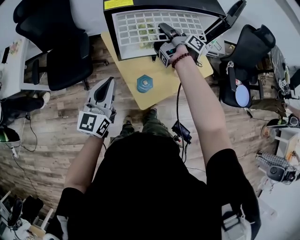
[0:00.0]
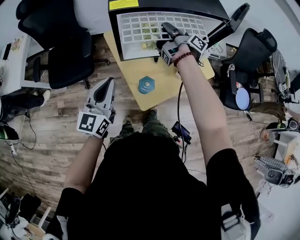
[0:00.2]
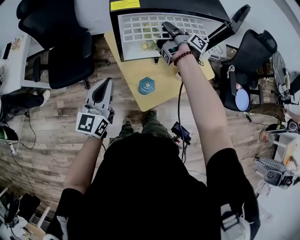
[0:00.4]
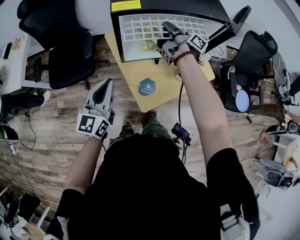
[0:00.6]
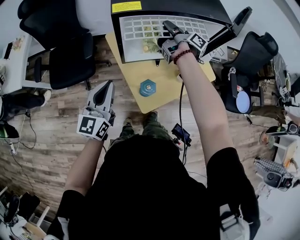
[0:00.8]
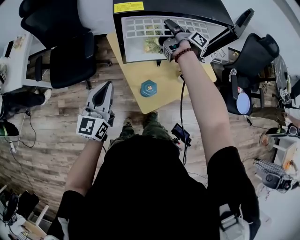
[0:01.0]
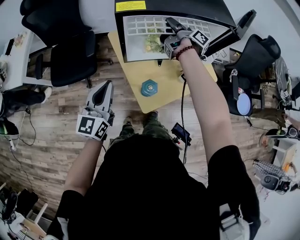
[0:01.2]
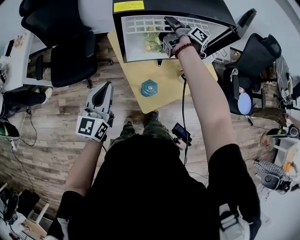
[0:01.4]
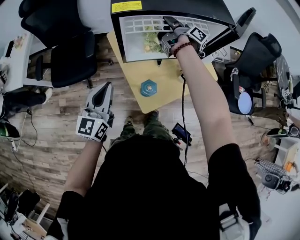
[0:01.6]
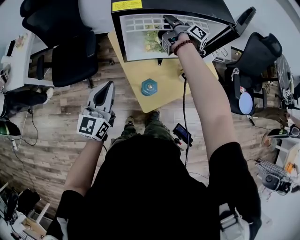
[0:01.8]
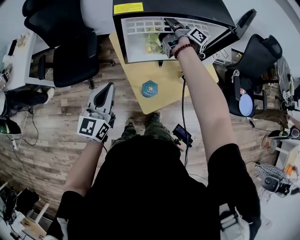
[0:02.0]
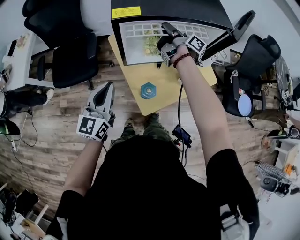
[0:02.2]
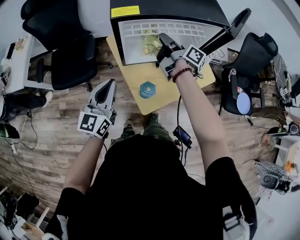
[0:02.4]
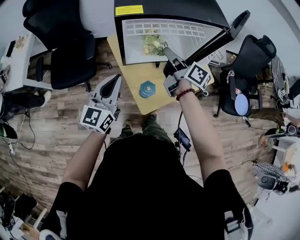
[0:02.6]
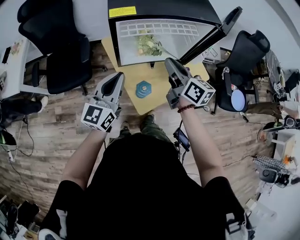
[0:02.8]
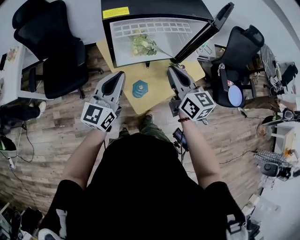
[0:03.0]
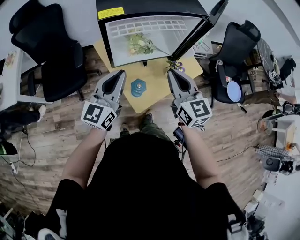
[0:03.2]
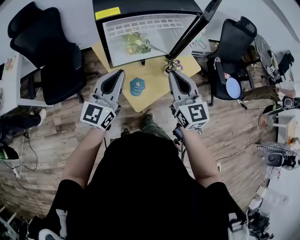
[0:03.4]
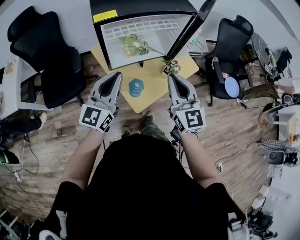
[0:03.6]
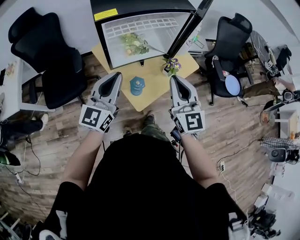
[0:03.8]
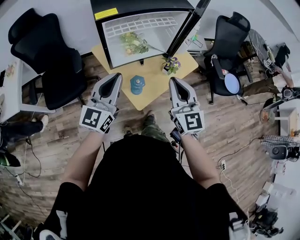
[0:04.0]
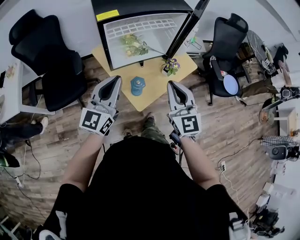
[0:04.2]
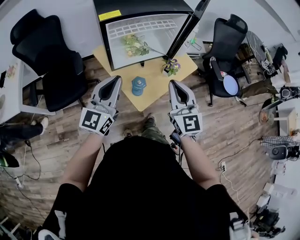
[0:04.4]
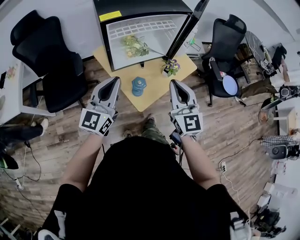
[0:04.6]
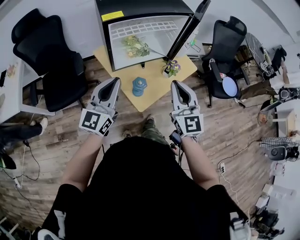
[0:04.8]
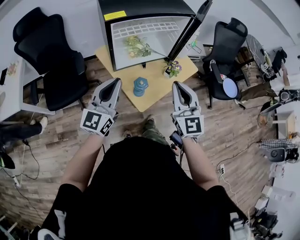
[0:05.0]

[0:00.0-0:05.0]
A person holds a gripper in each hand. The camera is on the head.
0:00.0 to 0:01.6: The right gripper shifts approximately 5 cm forward.
0:01.6 to 0:03.4: The left gripper heads to the right and upward, covering about 10 cm, and changes its angle by roughly 20 degrees; the right gripper is displaced backward by about 30 cm, and rolls counterclockwise, seen from behind, by roughly 90 degrees.
0:03.4 to 0:05.0: Both grippers move backward, approximately 5 cm.

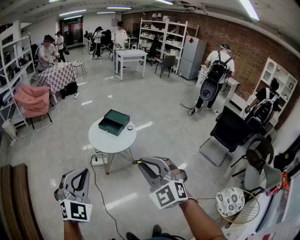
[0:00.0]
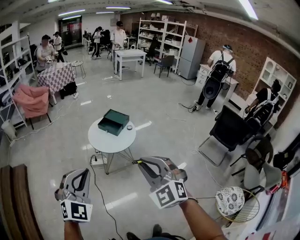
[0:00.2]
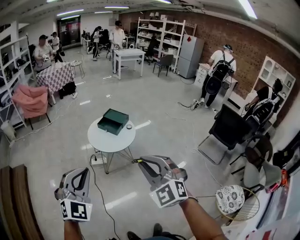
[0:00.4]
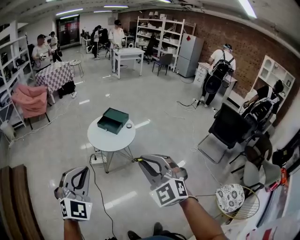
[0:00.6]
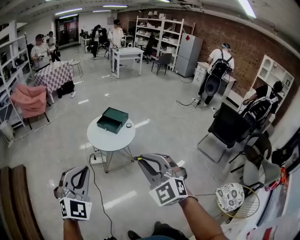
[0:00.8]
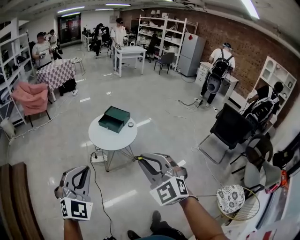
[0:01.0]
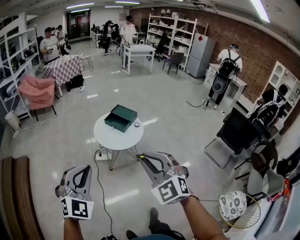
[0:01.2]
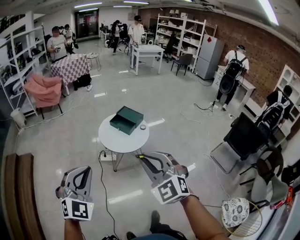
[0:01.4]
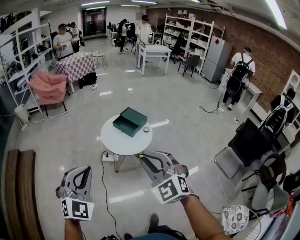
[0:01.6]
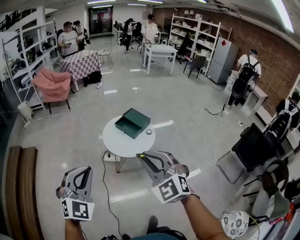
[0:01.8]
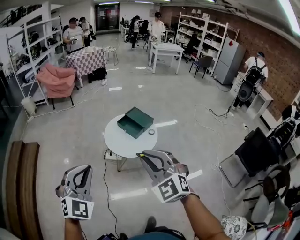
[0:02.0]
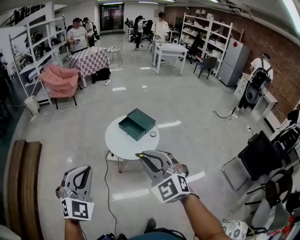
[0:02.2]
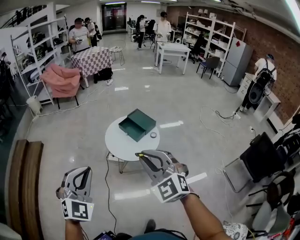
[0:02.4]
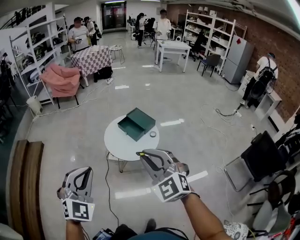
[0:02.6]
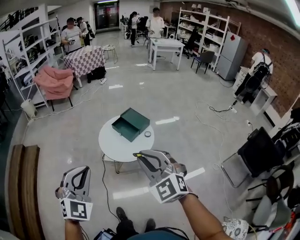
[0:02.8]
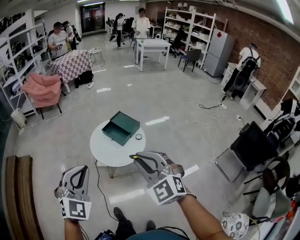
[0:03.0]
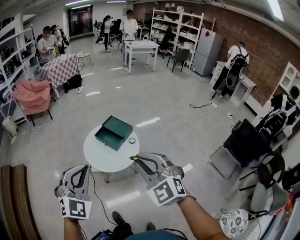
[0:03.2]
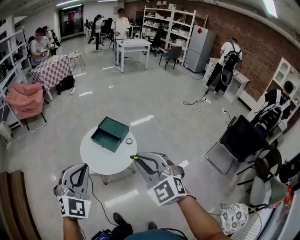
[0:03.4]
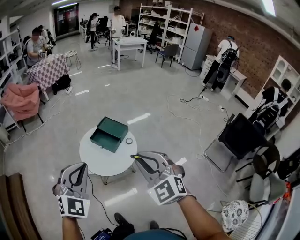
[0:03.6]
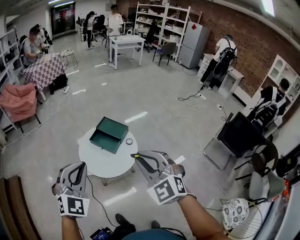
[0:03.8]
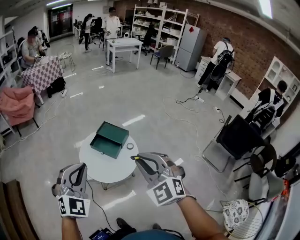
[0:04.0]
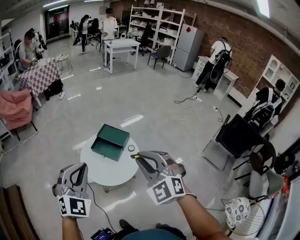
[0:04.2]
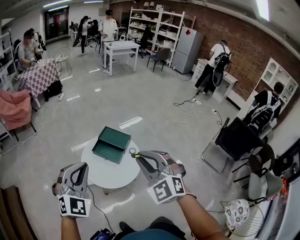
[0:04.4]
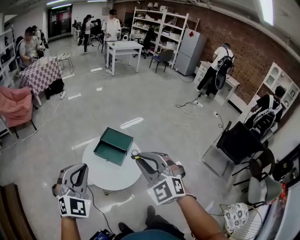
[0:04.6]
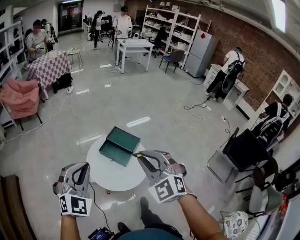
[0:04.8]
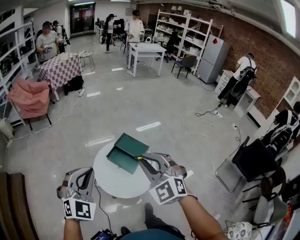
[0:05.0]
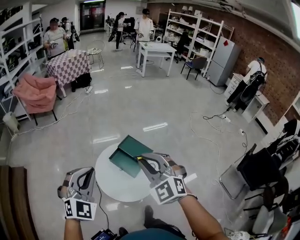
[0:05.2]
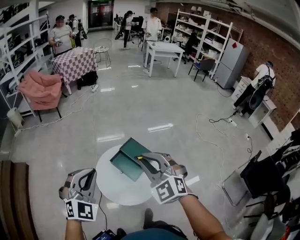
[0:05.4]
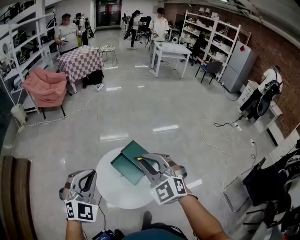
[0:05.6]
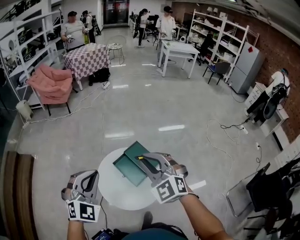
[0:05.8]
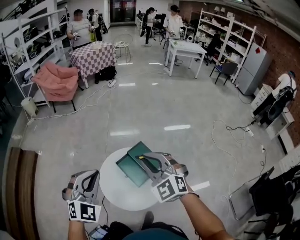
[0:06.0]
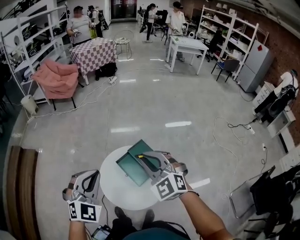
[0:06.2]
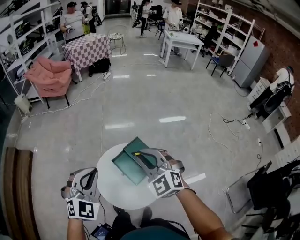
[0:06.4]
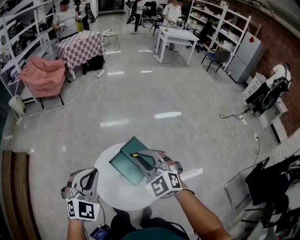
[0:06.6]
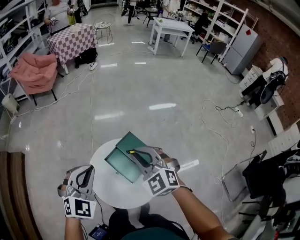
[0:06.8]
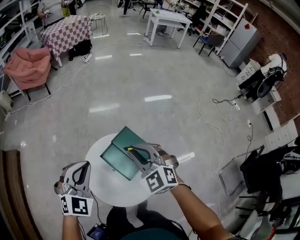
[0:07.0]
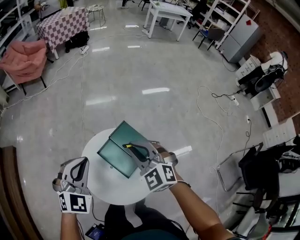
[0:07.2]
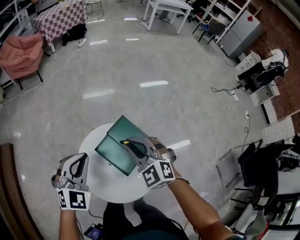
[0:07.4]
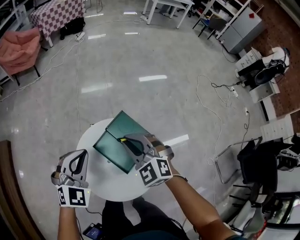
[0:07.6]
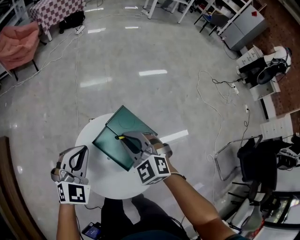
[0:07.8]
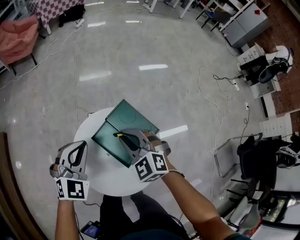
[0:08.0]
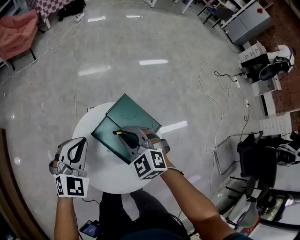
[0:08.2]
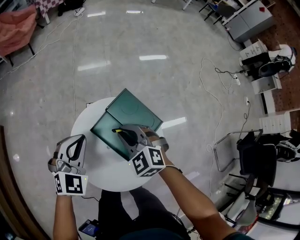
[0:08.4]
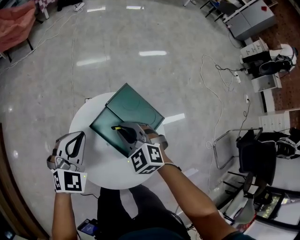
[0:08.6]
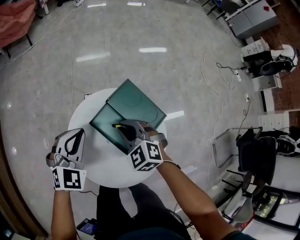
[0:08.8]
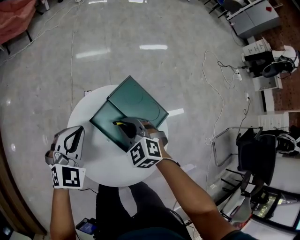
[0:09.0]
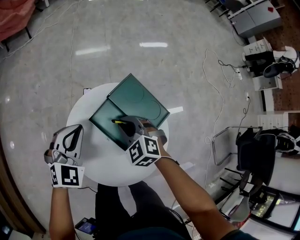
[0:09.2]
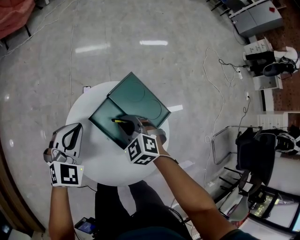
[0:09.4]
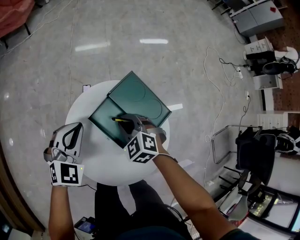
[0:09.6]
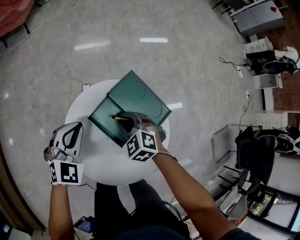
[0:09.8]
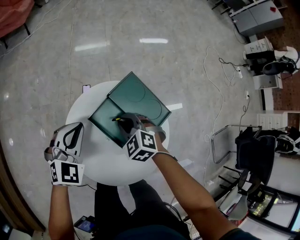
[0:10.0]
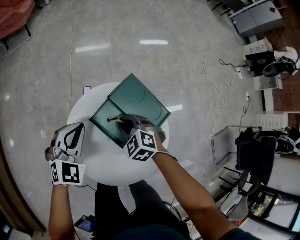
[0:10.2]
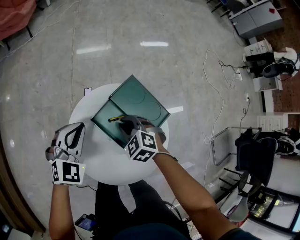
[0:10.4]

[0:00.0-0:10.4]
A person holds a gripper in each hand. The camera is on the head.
0:00.0 to 0:01.4: Both grippers travel together forward, some 10 cm.
0:01.4 to 0:03.0: The grippers both shift forward and to the right by about 30 cm.
0:03.0 to 0:04.4: Both grippers travel together forward and to the left, approximately 25 cm.
0:04.4 to 0:06.0: The right gripper moves approximately 35 cm, and turns by approximately 30 degrees, while the left gripper shifts by approximately 30 cm, and turns by roughly 20 degrees.
0:06.0 to 0:07.4: The right gripper goes some 30 cm downward and forward; the left gripper travels forward and downward by roughly 30 cm.
0:07.4 to 0:09.0: The grippers both shift downward by roughly 25 cm.
0:09.0 to 0:10.4: The grippers make only small movements.

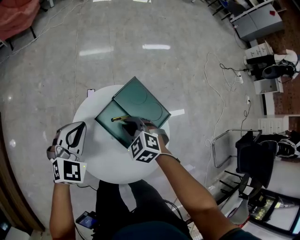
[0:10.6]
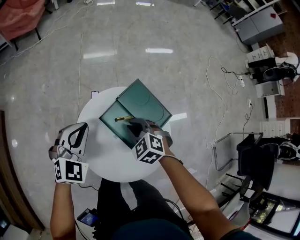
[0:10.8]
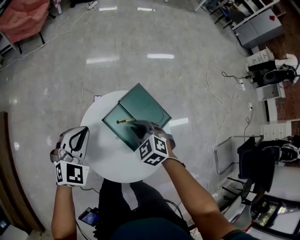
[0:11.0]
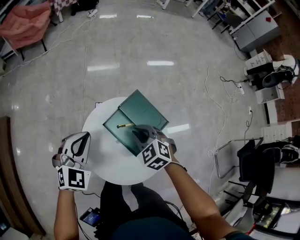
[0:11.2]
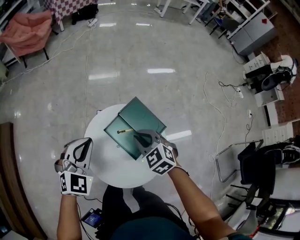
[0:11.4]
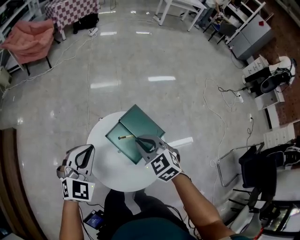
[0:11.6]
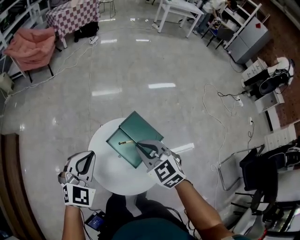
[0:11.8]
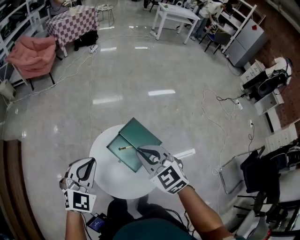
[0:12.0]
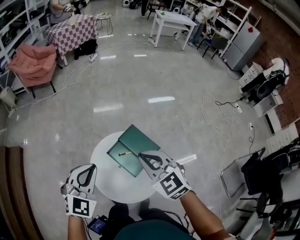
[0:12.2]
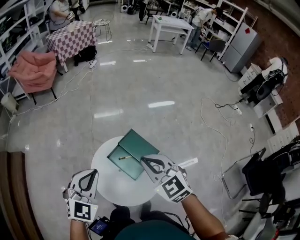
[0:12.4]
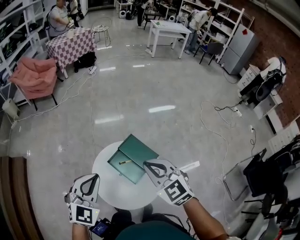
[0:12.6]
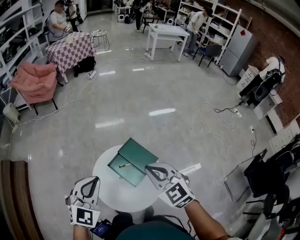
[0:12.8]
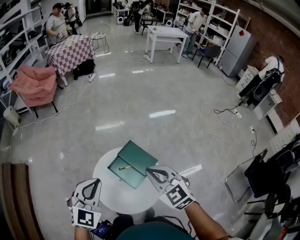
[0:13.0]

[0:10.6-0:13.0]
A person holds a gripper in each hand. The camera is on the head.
0:10.6 to 0:11.8: The right gripper heads upward, covering about 30 cm, and turns by about 30 degrees. The left gripper is displaced upward and backward by approximately 25 cm.
0:11.8 to 0:13.0: The right gripper heads upward, to the right and backward, covering approximately 20 cm. The left gripper shifts about 15 cm upward, backward and to the right.

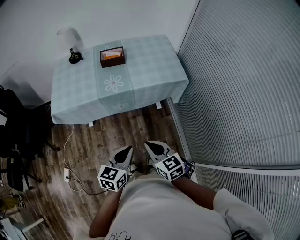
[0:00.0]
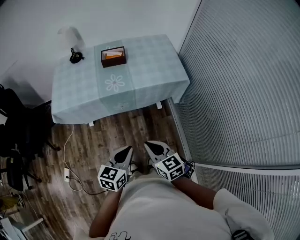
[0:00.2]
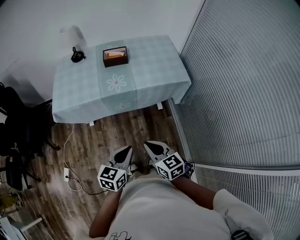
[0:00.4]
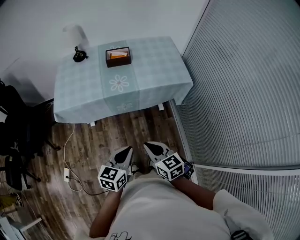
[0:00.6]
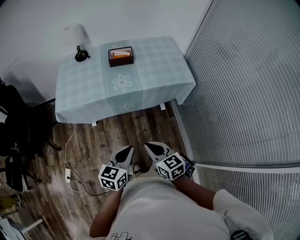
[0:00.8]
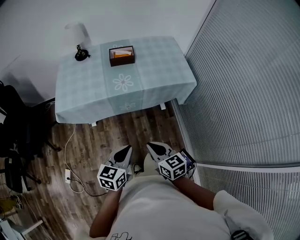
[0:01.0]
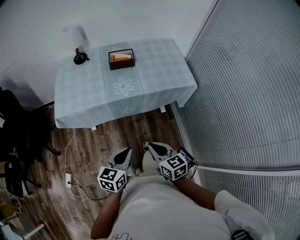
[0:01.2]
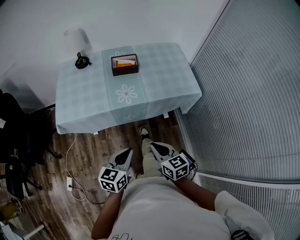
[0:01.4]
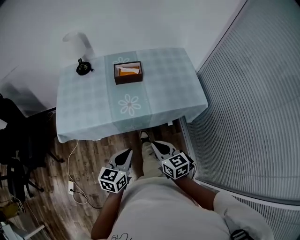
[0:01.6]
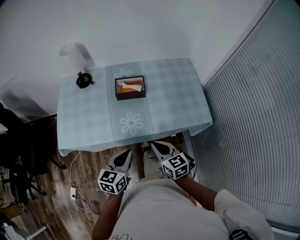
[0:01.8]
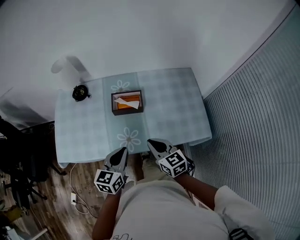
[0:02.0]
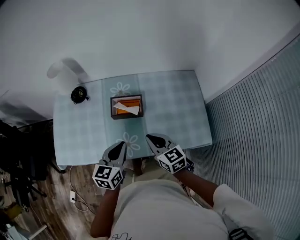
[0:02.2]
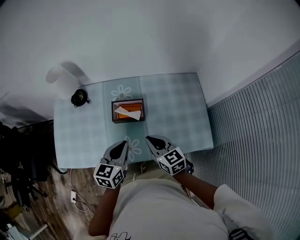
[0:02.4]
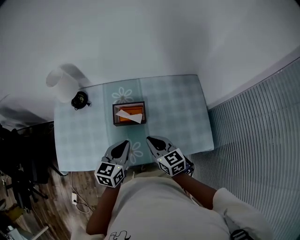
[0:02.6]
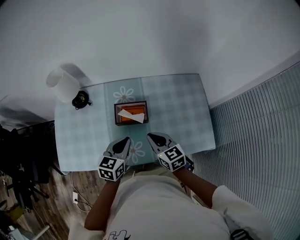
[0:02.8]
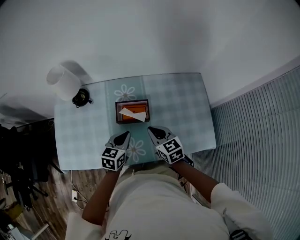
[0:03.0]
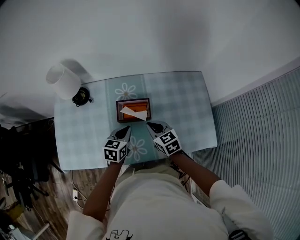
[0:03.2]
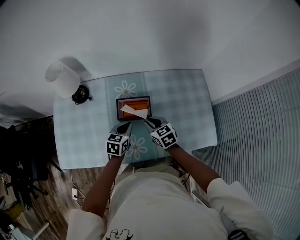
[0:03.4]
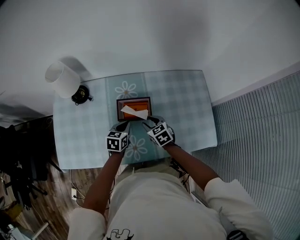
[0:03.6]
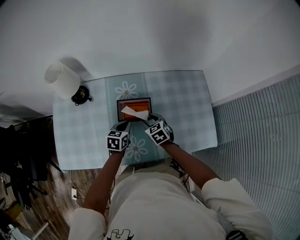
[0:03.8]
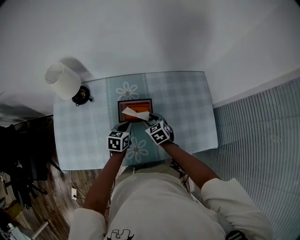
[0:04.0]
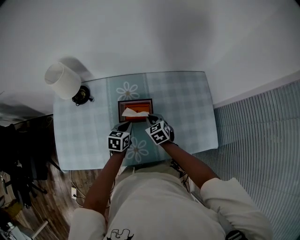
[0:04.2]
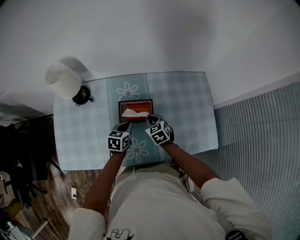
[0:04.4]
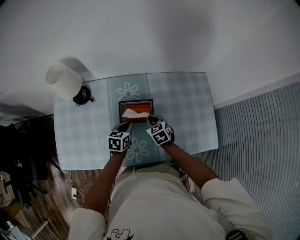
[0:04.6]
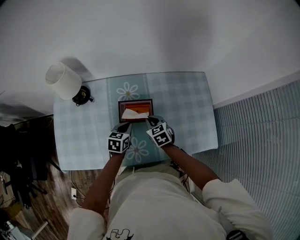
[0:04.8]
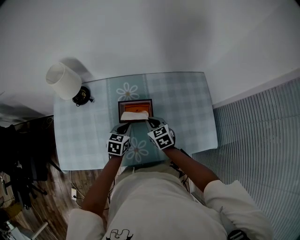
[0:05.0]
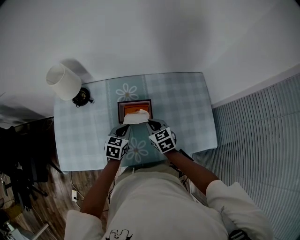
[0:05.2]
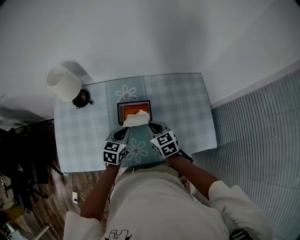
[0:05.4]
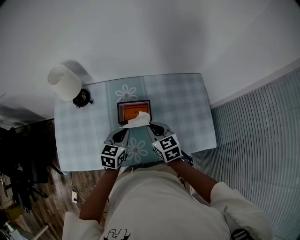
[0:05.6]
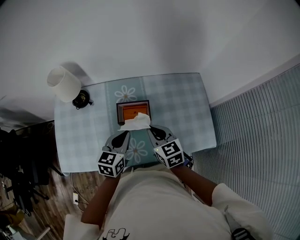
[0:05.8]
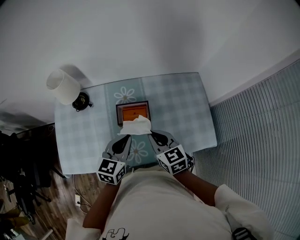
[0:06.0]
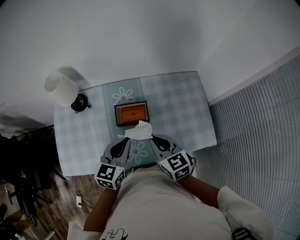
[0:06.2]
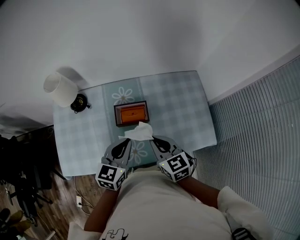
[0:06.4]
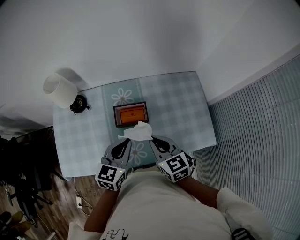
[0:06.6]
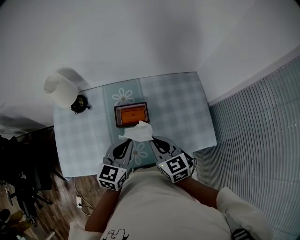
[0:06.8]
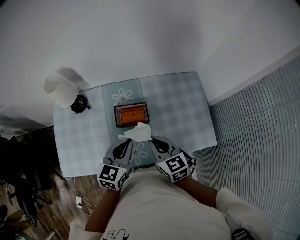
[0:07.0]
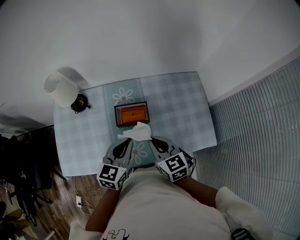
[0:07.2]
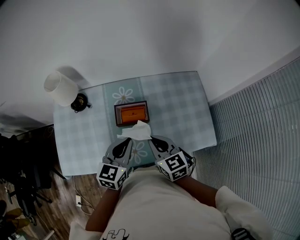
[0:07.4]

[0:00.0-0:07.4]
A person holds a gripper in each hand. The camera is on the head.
0:00.0 to 0:01.4: Both grippers travel together forward and to the left, roughly 15 cm.
0:01.4 to 0:03.0: The pair of grippers is taken forward, about 50 cm.
0:03.0 to 0:04.4: Both grippers travel together downward and forward, about 15 cm. The right gripper swivels roughly 20 degrees, and opens, then closes once more.
0:04.4 to 0:06.0: The grippers both shift upward and backward by about 20 cm. The left gripper changes its angle by approximately 20 degrees; the right gripper turns by roughly 20 degrees.
0:06.0 to 0:07.4: There are only small adjustments of the grippers.
